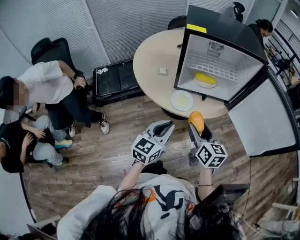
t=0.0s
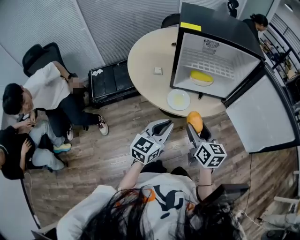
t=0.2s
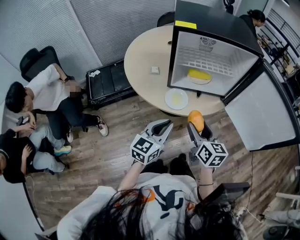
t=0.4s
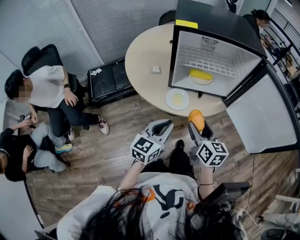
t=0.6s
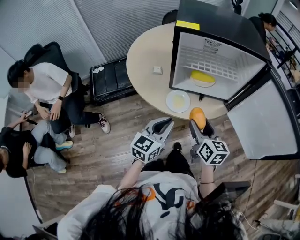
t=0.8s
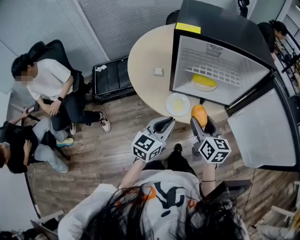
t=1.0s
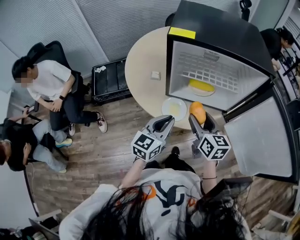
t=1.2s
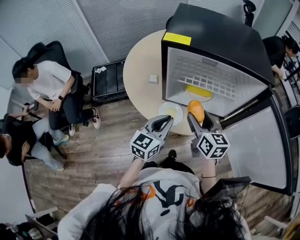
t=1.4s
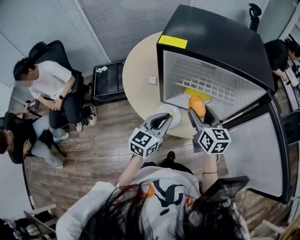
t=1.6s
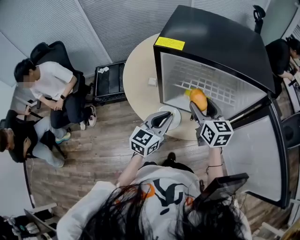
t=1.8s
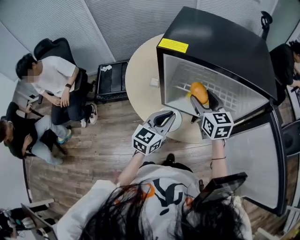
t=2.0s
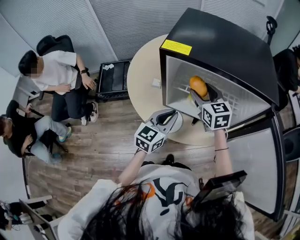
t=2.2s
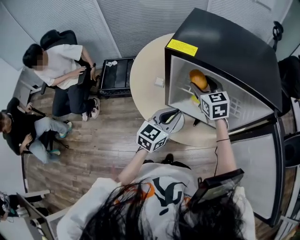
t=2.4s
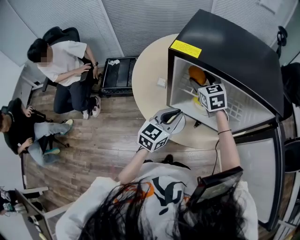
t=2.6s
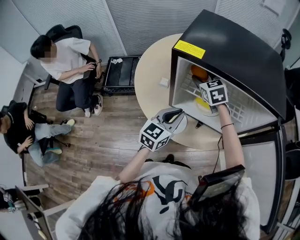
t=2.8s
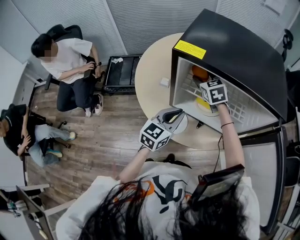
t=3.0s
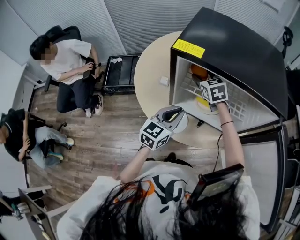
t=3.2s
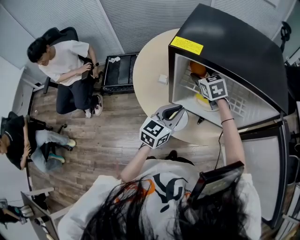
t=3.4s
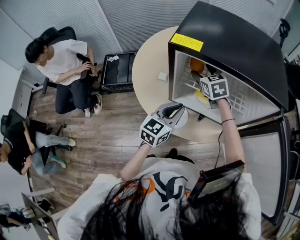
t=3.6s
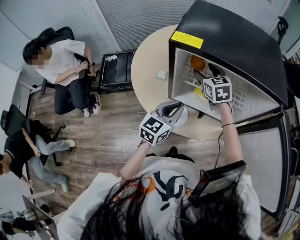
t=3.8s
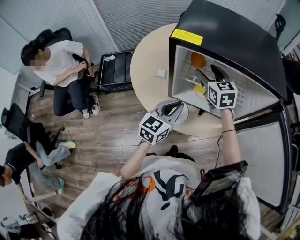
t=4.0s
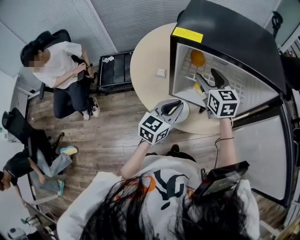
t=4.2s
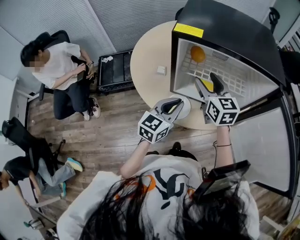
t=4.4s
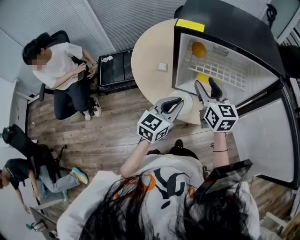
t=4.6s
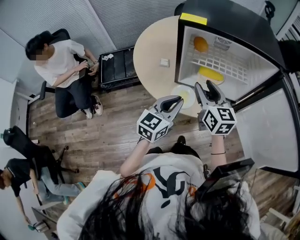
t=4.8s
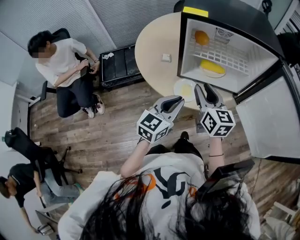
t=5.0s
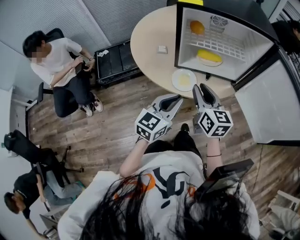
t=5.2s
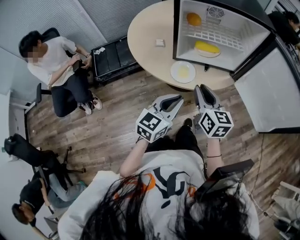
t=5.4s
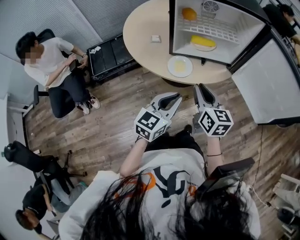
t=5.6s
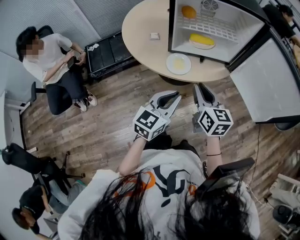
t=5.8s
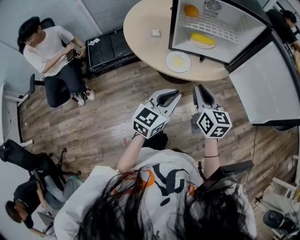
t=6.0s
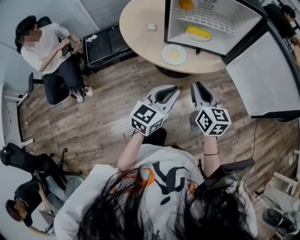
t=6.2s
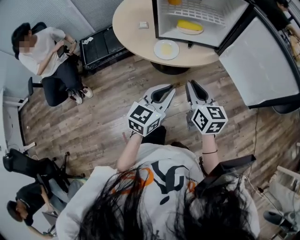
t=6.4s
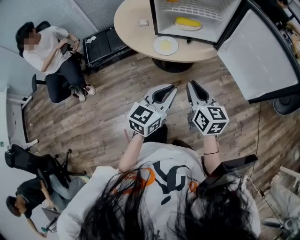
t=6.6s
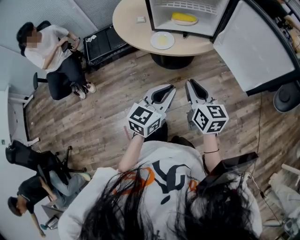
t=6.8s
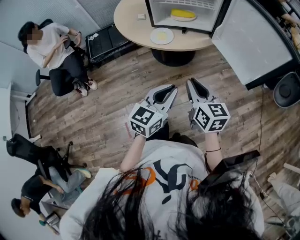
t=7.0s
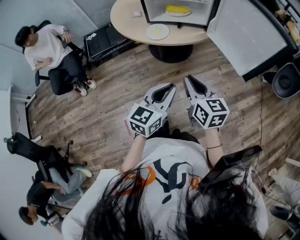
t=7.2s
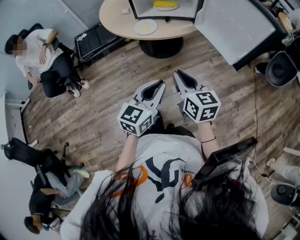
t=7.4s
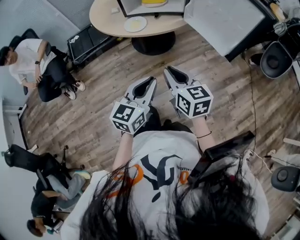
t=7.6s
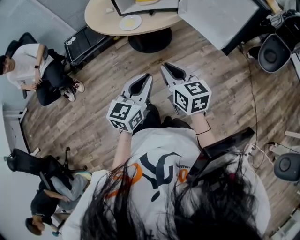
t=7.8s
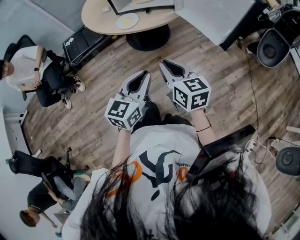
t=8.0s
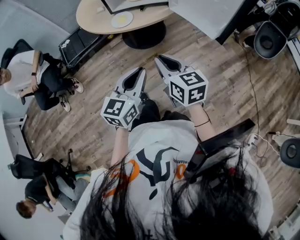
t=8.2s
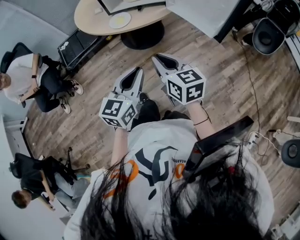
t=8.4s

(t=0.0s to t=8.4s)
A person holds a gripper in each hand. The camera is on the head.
t=0.0s - t=1.4s: Both grippers move forward, approximately 15 cm.
t=1.4s - t=2.8s: The right gripper is displaced forward by roughly 25 cm, and changes its angle by some 40 degrees, while the left gripper is displaced forward by roughly 10 cm.
t=2.8s - t=4.2s: The right gripper is displaced backward by roughly 10 cm, and changes its angle by about 20 degrees.
t=4.2s - t=5.6s: Both grippers move backward, approximately 25 cm. The right gripper turns by roughly 30 degrees, and closes its fingers.
t=5.6s - t=7.0s: The two grippers go about 20 cm backward and to the right.
t=7.0s - t=8.4s: The grippers both shift backward by about 5 cm.

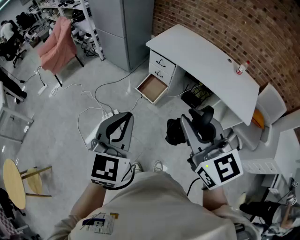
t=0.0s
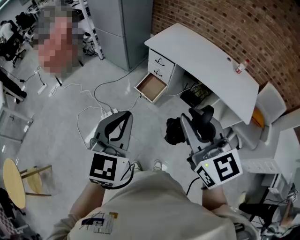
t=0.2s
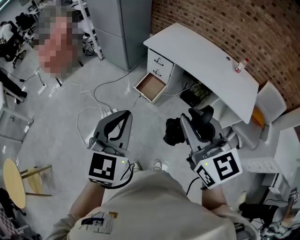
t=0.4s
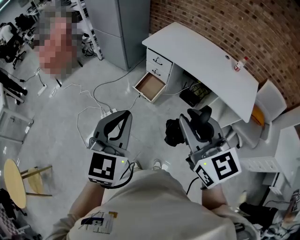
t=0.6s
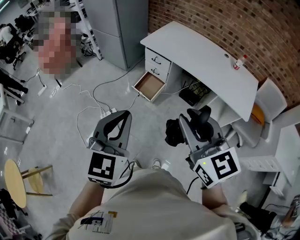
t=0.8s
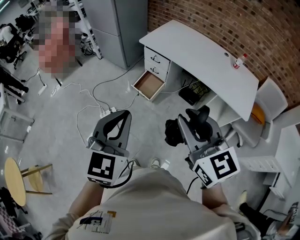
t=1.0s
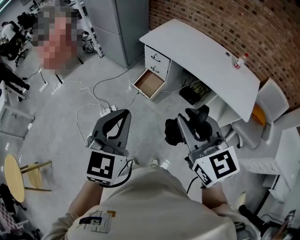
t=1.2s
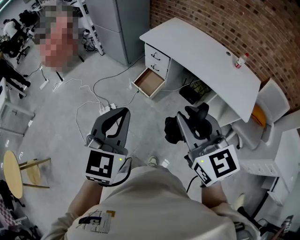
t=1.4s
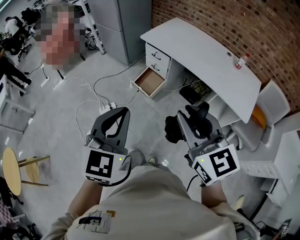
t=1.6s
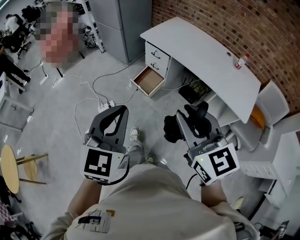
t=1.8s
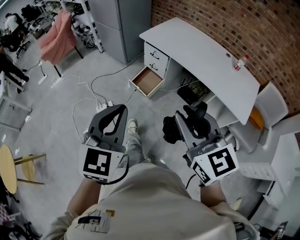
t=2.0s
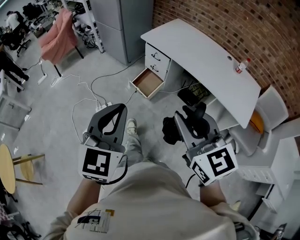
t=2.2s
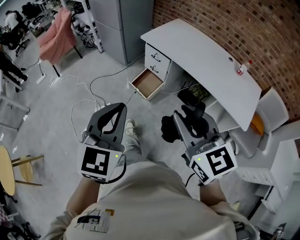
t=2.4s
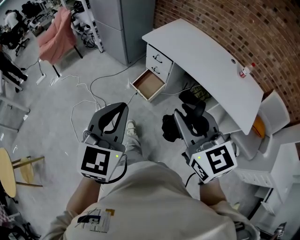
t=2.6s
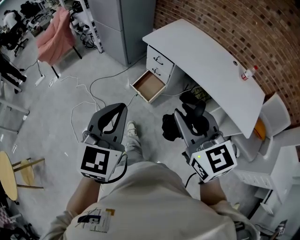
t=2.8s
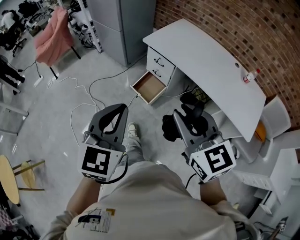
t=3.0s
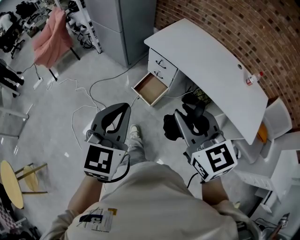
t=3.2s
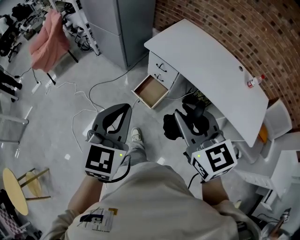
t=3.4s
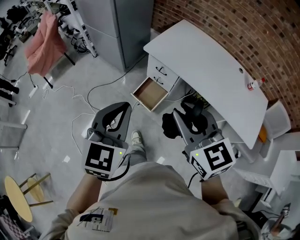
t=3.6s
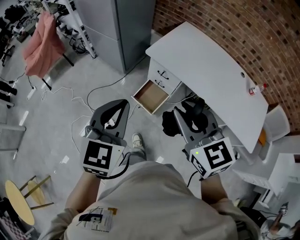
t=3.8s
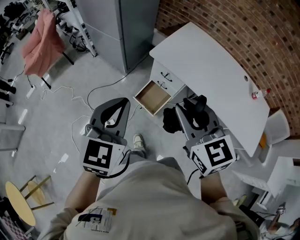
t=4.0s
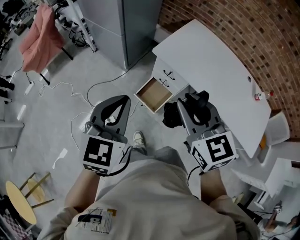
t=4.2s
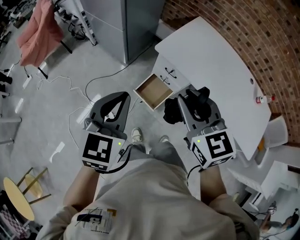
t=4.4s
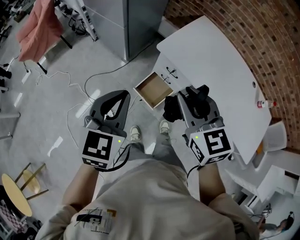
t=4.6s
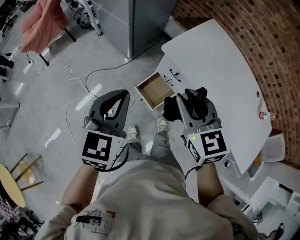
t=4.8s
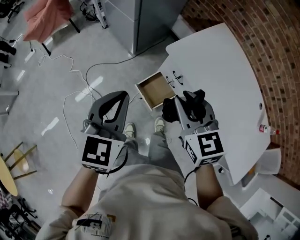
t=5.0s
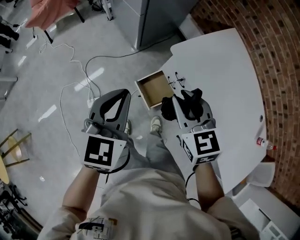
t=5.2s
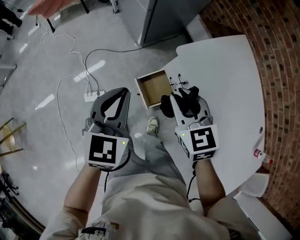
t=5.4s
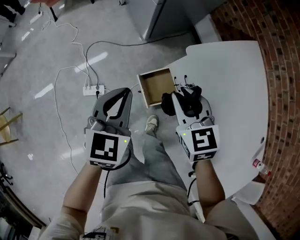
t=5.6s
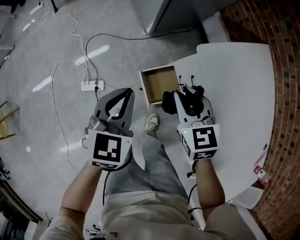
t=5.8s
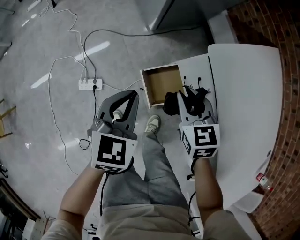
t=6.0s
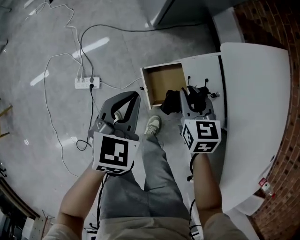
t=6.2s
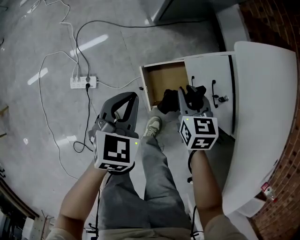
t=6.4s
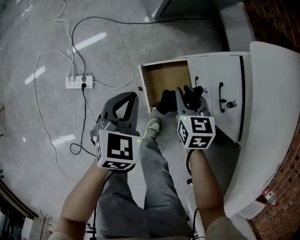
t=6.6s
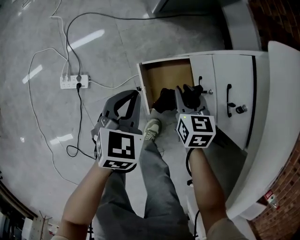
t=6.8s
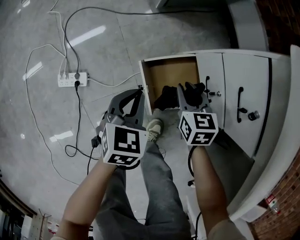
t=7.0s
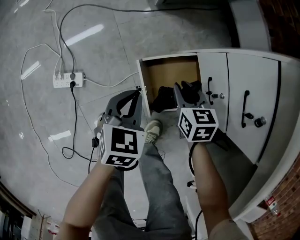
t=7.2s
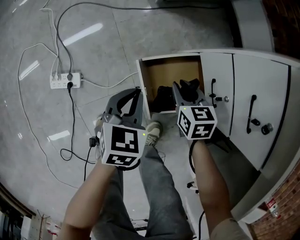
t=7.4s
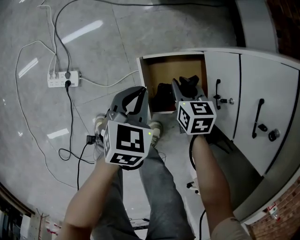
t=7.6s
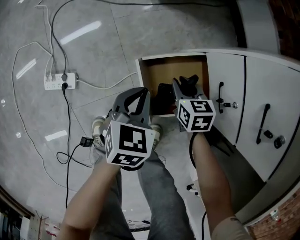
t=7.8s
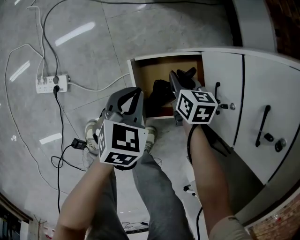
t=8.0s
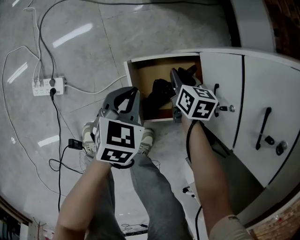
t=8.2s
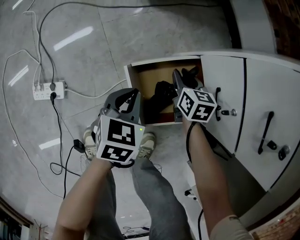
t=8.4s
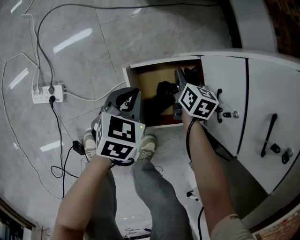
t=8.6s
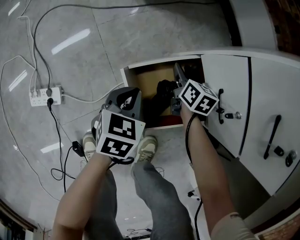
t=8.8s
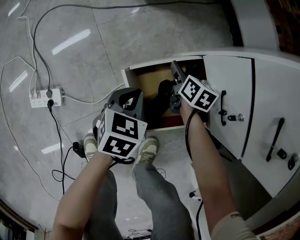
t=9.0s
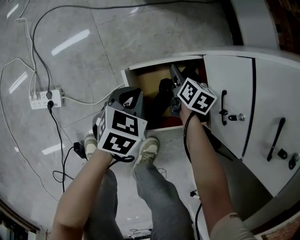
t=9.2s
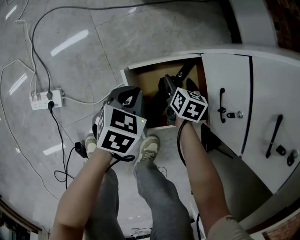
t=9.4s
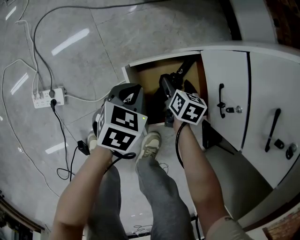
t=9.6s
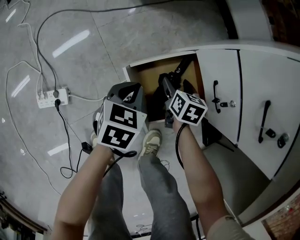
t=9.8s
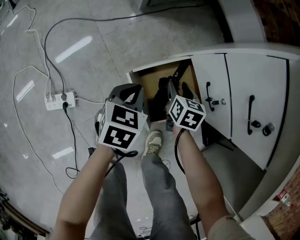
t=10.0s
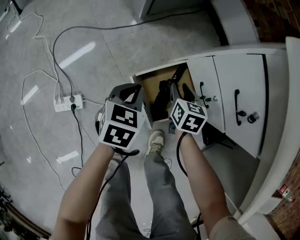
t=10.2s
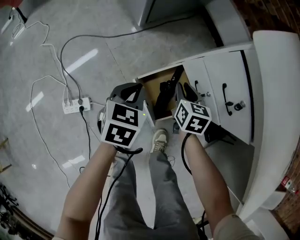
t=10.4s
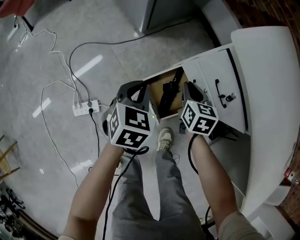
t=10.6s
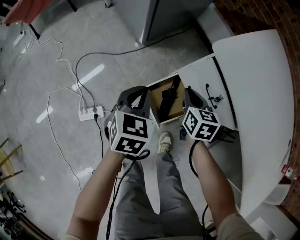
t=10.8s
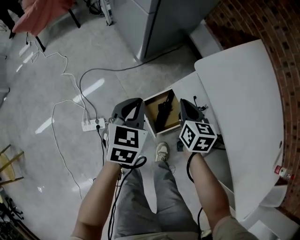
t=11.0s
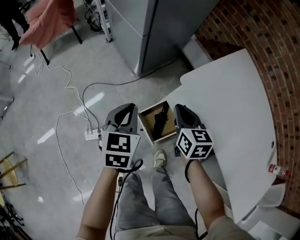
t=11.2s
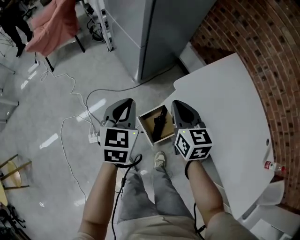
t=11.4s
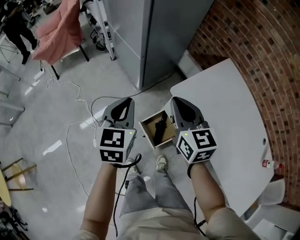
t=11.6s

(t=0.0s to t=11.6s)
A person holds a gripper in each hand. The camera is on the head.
t=0.0s - t=1.4s: The grippers both shift to the right by about 10 cm.
t=1.4s - t=2.8s: Both grippers travel together forward, about 10 cm.
t=2.8s - t=4.4s: Both grippers move forward, some 40 cm.
t=4.4s - t=5.8s: The grippers both shift downward and forward by roughly 35 cm. The right gripper swivels about 30 degrees, while the left gripper rotates approximately 30 degrees.
t=5.8s - t=7.2s: Both grippers travel together downward, roughly 40 cm.
t=7.2s - t=8.8s: The left gripper goes about 15 cm downward; the right gripper is displaced downward and forward by some 20 cm, and changes its angle by about 20 degrees.
t=8.8s - t=10.2s: The left gripper is displaced upward by about 15 cm. The right gripper goes roughly 15 cm upward and backward, and opens, then closes once more.
t=10.2s - t=11.6s: Both grippers move upward, about 60 cm. The right gripper angles its fingers upward, by approximately 30 degrees, and closes. Meanwhile the left gripper rotates about 30 degrees.

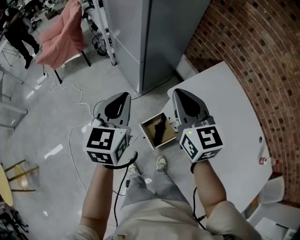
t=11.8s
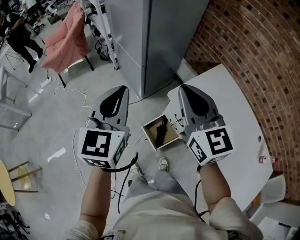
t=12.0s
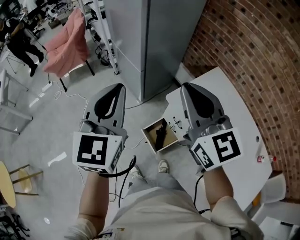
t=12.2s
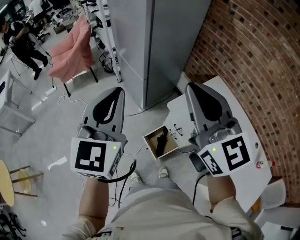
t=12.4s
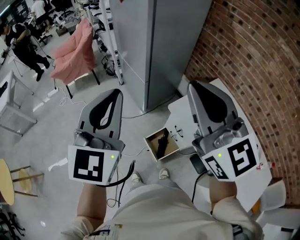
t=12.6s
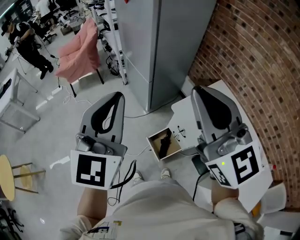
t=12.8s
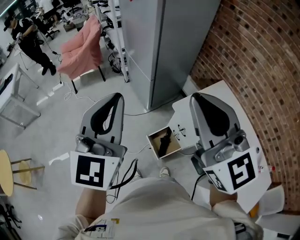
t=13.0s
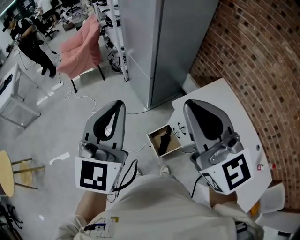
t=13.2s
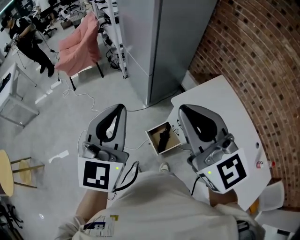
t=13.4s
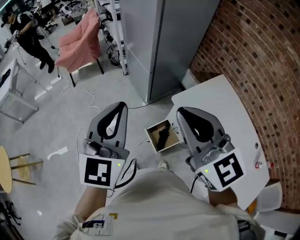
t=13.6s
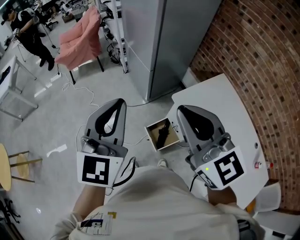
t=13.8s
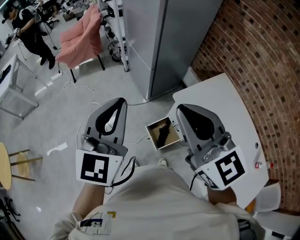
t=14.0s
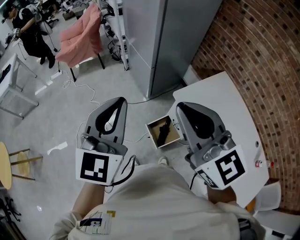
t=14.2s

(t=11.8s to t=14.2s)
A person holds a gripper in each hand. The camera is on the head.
t=11.8s - t=13.0s: Both grippers travel together upward and backward, some 25 cm. The left gripper changes its angle by roughly 30 degrees. Meanwhile the right gripper swivels about 30 degrees.
t=13.0s - t=14.2s: The two grippers go some 5 cm downward.

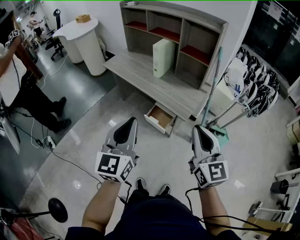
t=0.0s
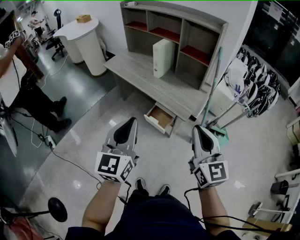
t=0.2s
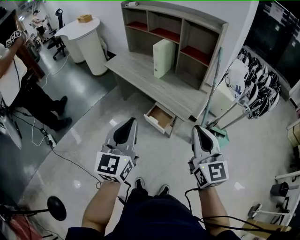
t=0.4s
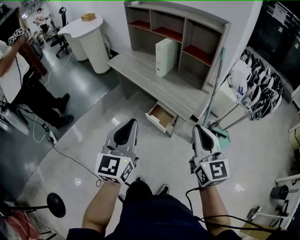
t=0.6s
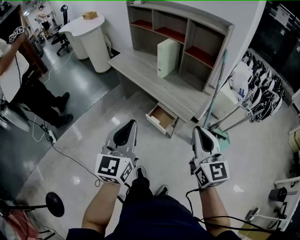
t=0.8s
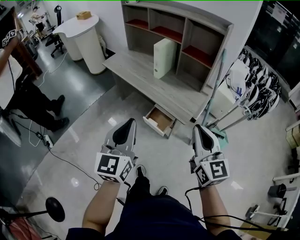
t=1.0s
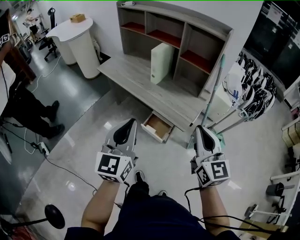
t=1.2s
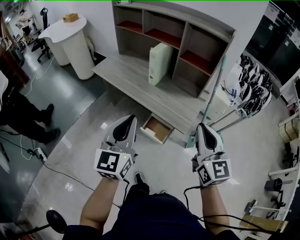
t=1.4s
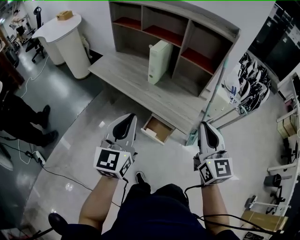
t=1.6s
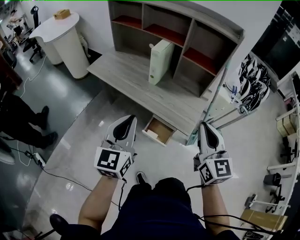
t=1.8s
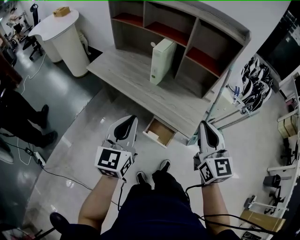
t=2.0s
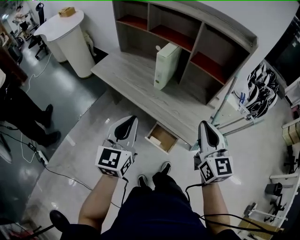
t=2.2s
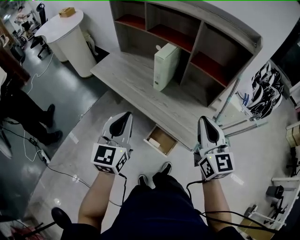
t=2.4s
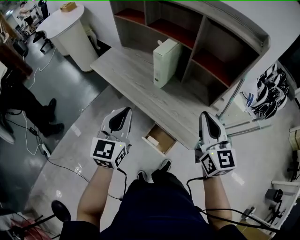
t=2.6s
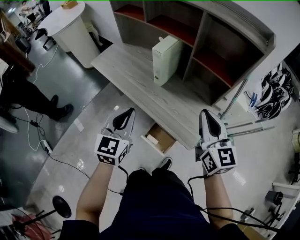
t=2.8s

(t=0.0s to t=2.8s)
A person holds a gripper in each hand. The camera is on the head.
t=0.0s - t=1.4s: Both grippers move forward, approximately 15 cm.
t=1.4s - t=2.8s: The left gripper shifts approximately 25 cm forward and downward; the right gripper is displaced forward by approximately 20 cm.
